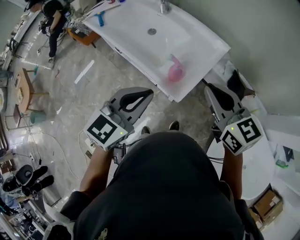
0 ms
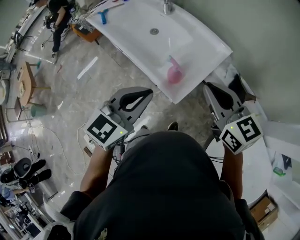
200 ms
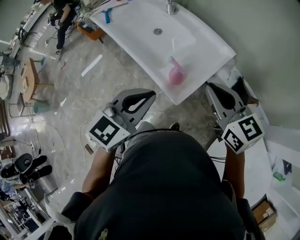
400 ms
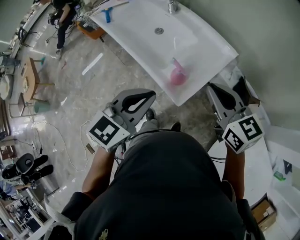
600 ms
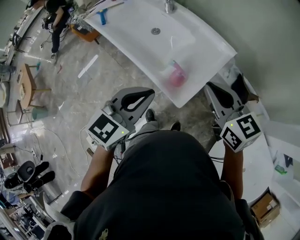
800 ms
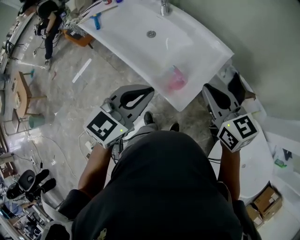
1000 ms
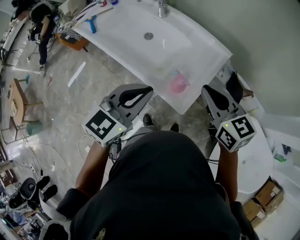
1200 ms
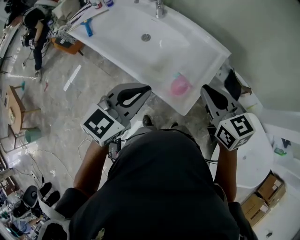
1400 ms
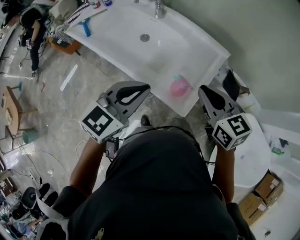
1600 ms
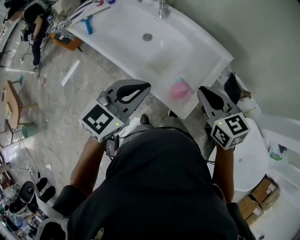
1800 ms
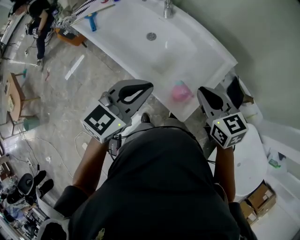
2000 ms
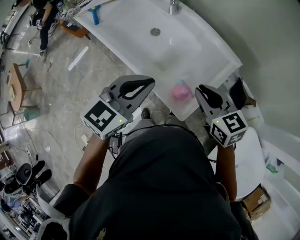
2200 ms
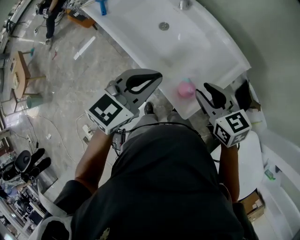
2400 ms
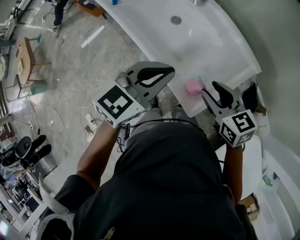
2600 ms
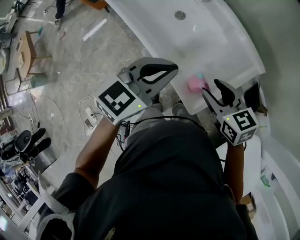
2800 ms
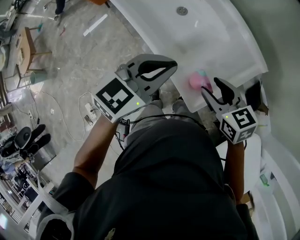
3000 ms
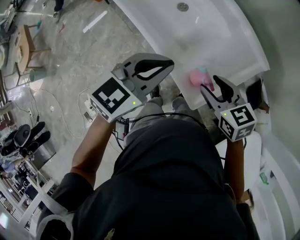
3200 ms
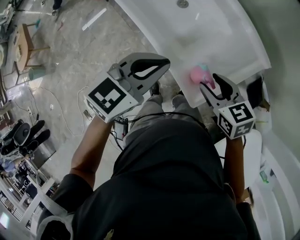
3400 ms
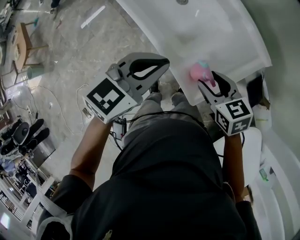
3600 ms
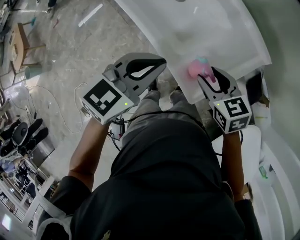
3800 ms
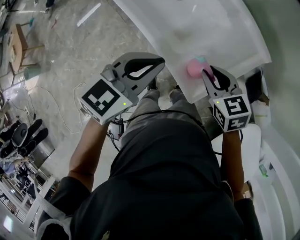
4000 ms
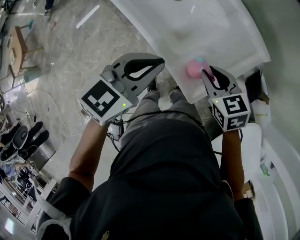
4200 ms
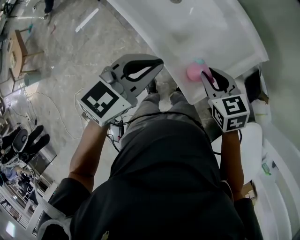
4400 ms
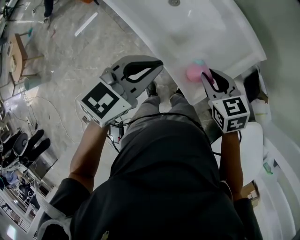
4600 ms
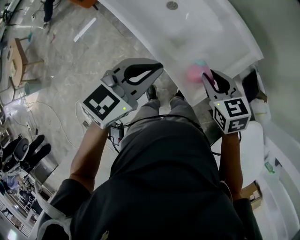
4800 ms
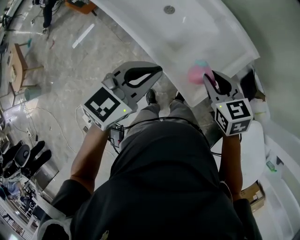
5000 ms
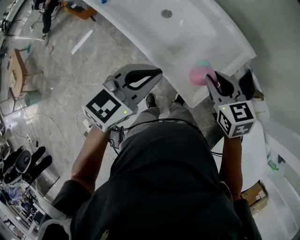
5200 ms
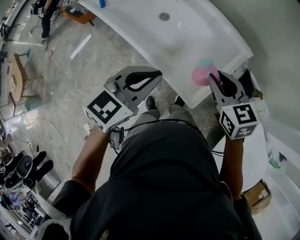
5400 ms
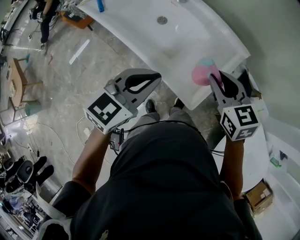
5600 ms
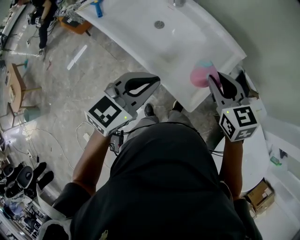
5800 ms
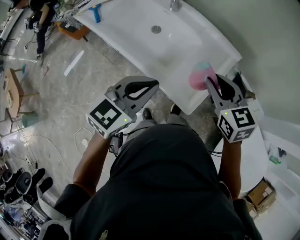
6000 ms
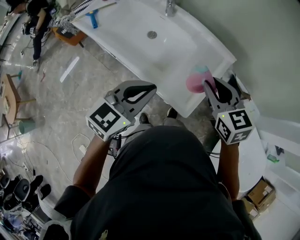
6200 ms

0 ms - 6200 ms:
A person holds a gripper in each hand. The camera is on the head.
0 ms - 1600 ms: The right gripper travels forward, to the left and downward by approximately 15 cm. Meanwhile the left gripper shifts roughly 15 cm forward and to the left.
1600 ms - 3200 ms: The right gripper heads downward, covering roughly 10 cm, rotates some 30 degrees, and opens up; the left gripper heads downward, covering about 5 cm.
3200 ms - 4600 ms: The right gripper closes up.
4600 ms - 6200 ms: The left gripper changes place by about 5 cm; the right gripper shifts roughly 15 cm upward, and swivels about 20 degrees.

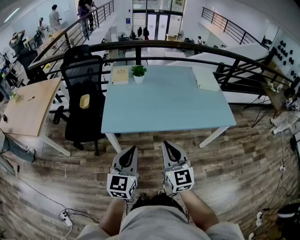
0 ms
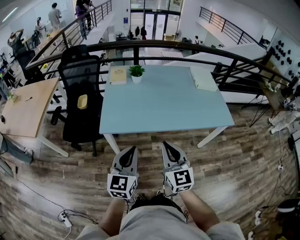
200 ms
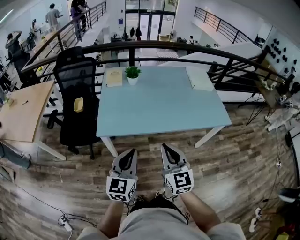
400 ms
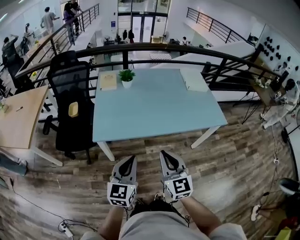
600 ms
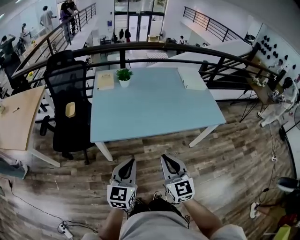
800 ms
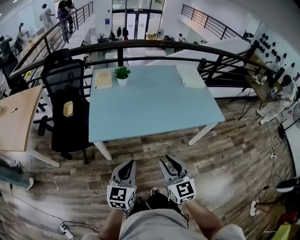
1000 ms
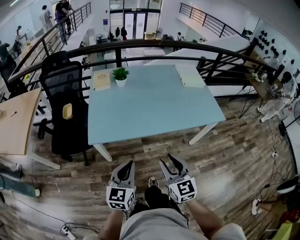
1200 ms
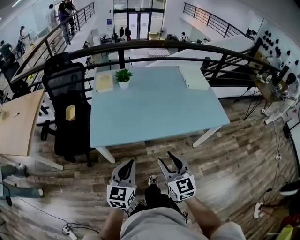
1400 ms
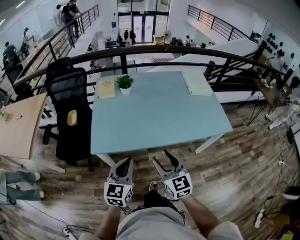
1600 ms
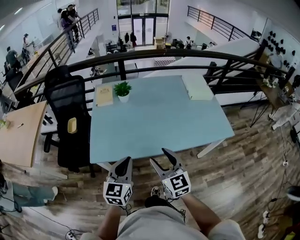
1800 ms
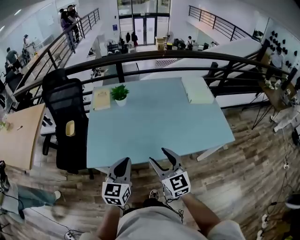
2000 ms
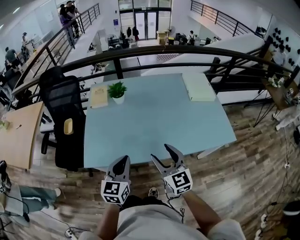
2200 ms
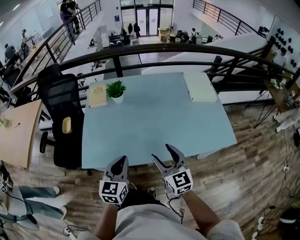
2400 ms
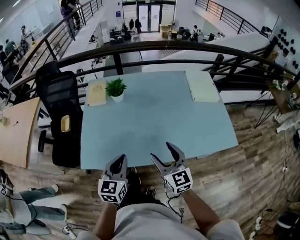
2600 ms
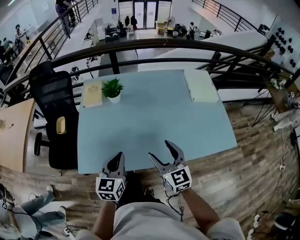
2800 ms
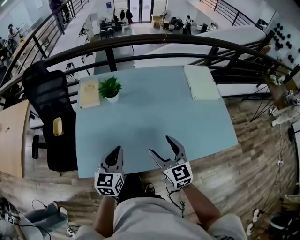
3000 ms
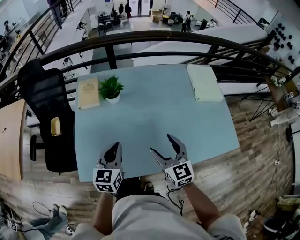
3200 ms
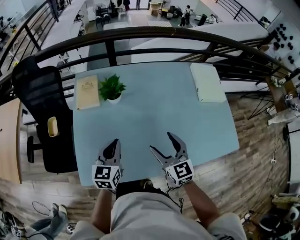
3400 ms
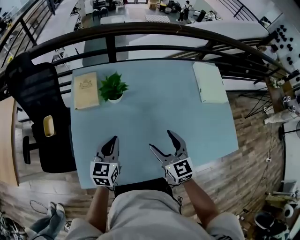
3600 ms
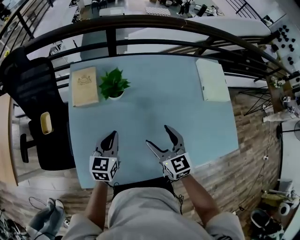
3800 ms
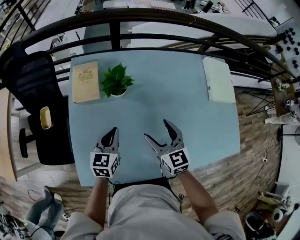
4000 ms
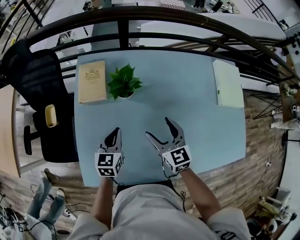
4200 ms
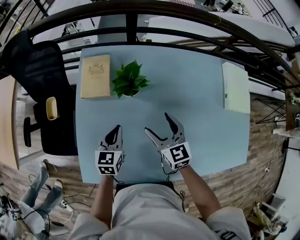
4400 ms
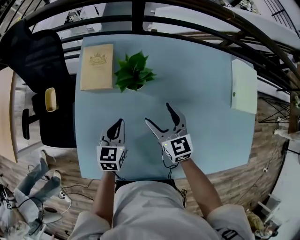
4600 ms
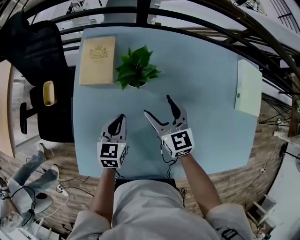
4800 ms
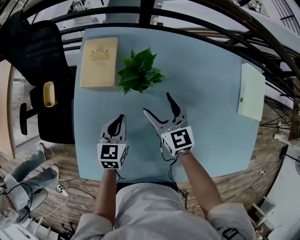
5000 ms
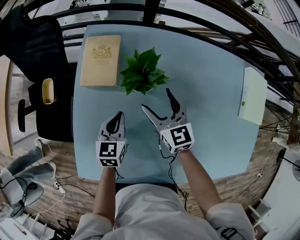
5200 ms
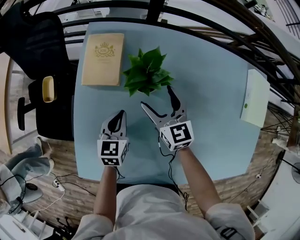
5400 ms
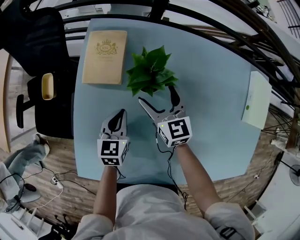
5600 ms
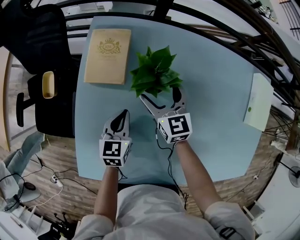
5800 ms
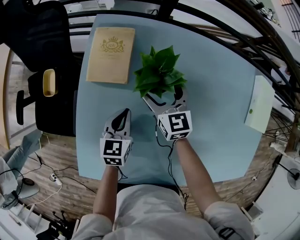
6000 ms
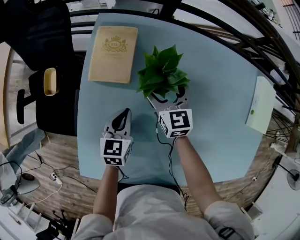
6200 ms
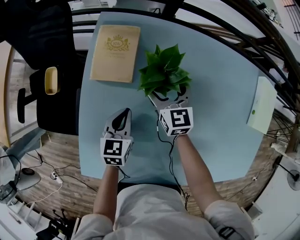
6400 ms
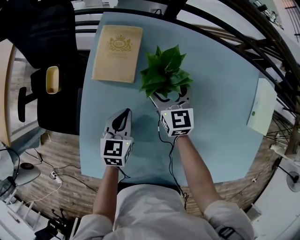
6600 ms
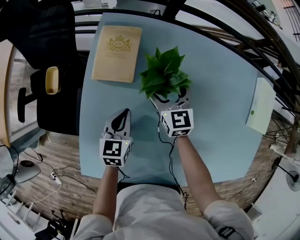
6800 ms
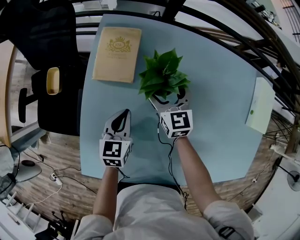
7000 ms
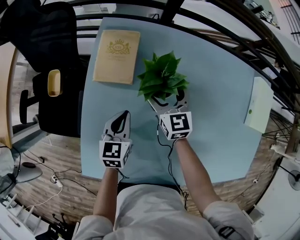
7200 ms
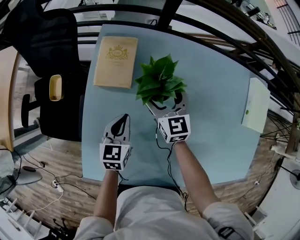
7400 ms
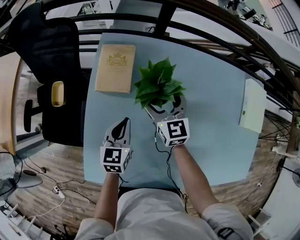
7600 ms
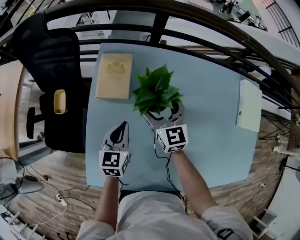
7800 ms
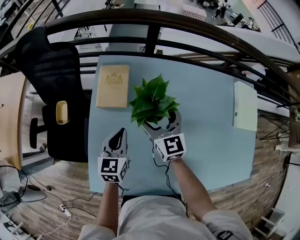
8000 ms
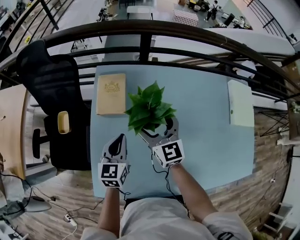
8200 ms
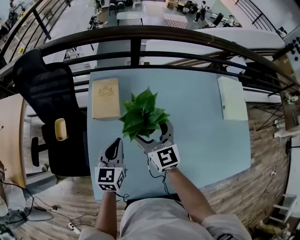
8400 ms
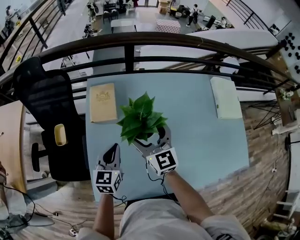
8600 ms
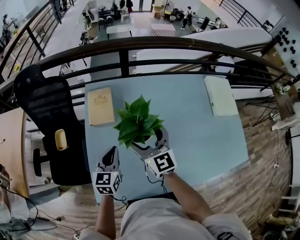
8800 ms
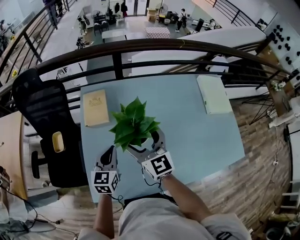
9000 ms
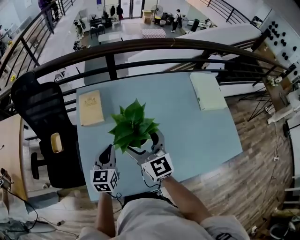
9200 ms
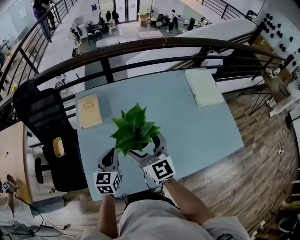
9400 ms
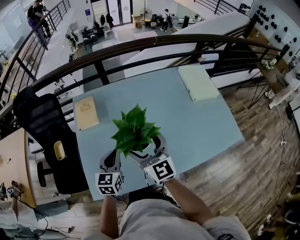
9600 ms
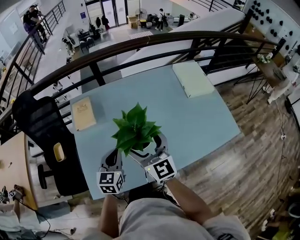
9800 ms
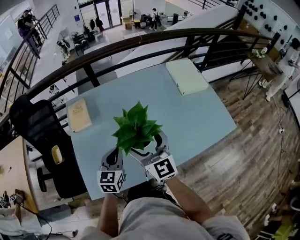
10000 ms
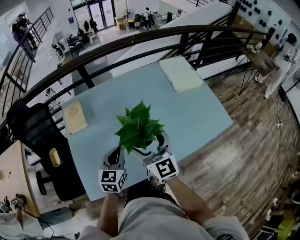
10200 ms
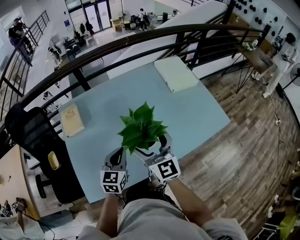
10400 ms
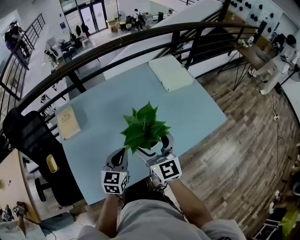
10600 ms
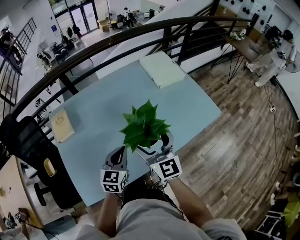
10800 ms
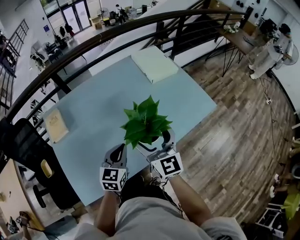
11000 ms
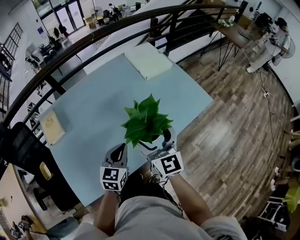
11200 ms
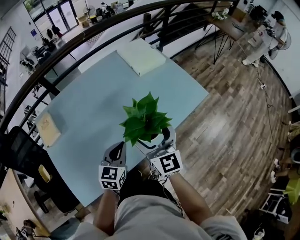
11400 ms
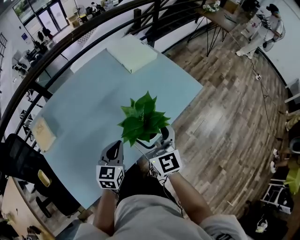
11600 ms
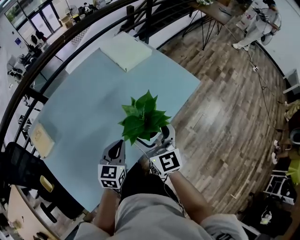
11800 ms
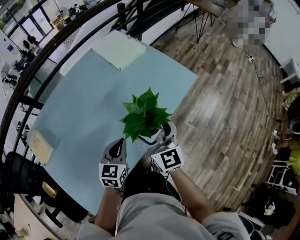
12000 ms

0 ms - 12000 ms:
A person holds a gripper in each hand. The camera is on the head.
0 ms - 1600 ms: The left gripper shifts some 10 cm forward. Meanwhile the right gripper moves forward and downward, some 10 cm, and opens its fingers.
1600 ms - 3000 ms: Both grippers move forward, approximately 25 cm.
3000 ms - 4400 ms: Both grippers travel together forward, downward and to the left, roughly 30 cm.
4400 ms - 6000 ms: The left gripper is displaced downward and forward by approximately 10 cm, while the right gripper is displaced forward, downward and to the left by roughly 20 cm.
6000 ms - 7600 ms: Both grippers travel together upward, roughly 5 cm.
7600 ms - 9000 ms: The left gripper is displaced upward and backward by some 15 cm, while the right gripper goes approximately 25 cm upward and backward.
9000 ms - 10400 ms: The grippers both shift to the right and backward by roughly 25 cm. The left gripper turns by some 20 degrees, while the right gripper changes its angle by roughly 20 degrees.
10400 ms - 12000 ms: The right gripper changes place by roughly 20 cm, and turns by about 30 degrees. The left gripper ends up roughly 20 cm from where it was, and turns by some 30 degrees.

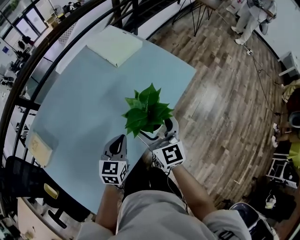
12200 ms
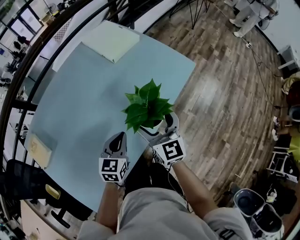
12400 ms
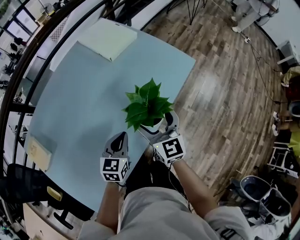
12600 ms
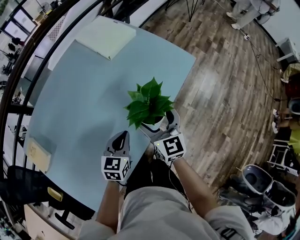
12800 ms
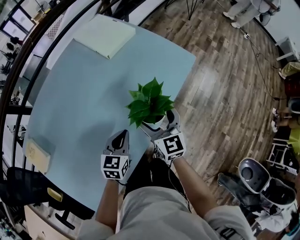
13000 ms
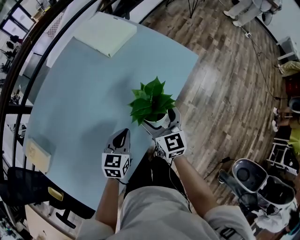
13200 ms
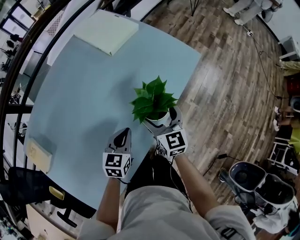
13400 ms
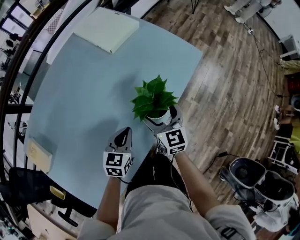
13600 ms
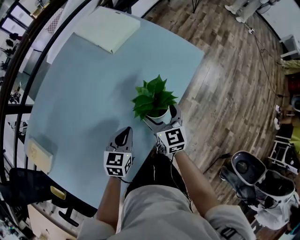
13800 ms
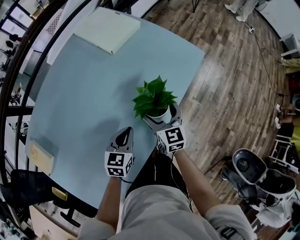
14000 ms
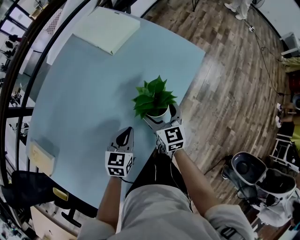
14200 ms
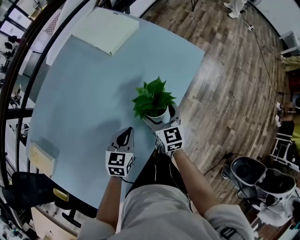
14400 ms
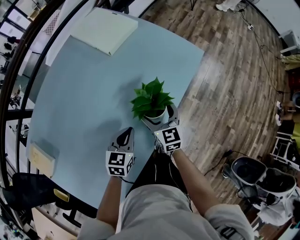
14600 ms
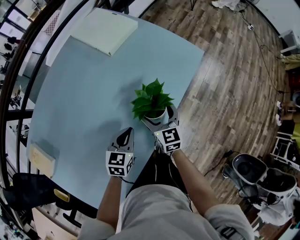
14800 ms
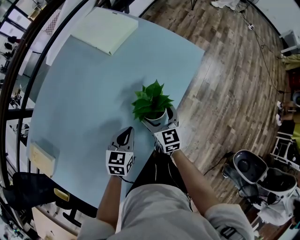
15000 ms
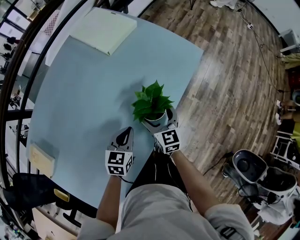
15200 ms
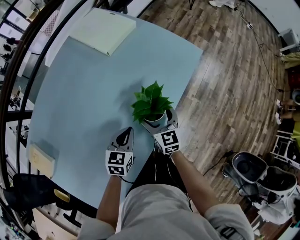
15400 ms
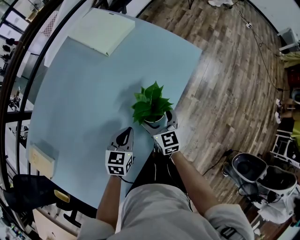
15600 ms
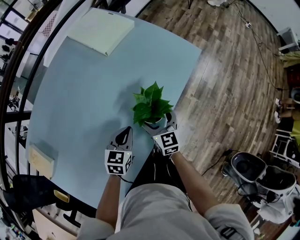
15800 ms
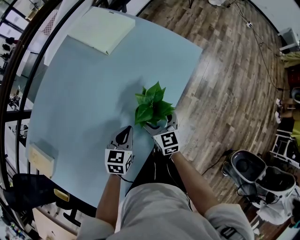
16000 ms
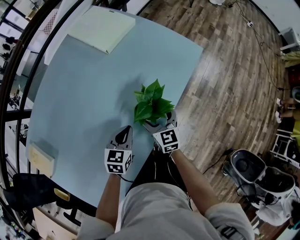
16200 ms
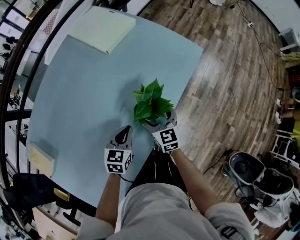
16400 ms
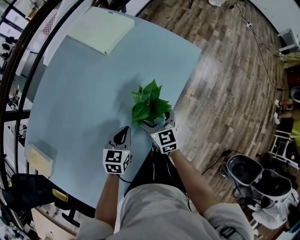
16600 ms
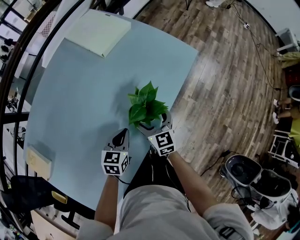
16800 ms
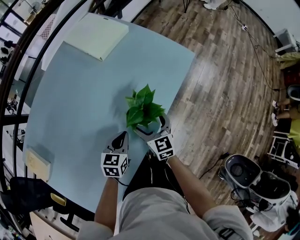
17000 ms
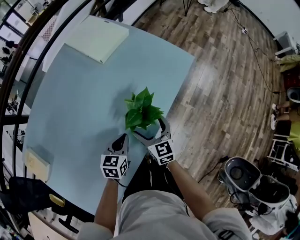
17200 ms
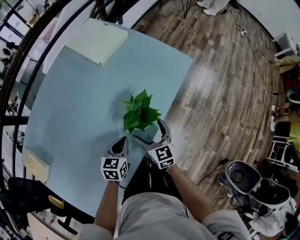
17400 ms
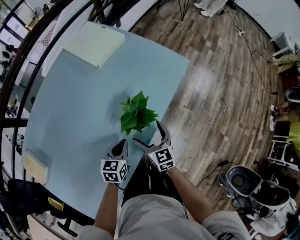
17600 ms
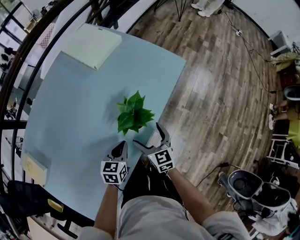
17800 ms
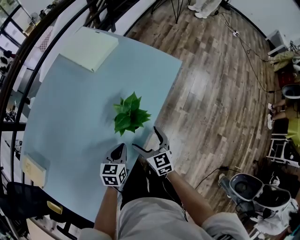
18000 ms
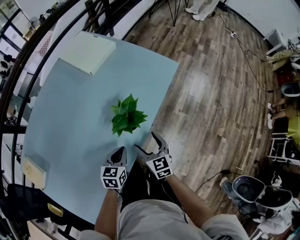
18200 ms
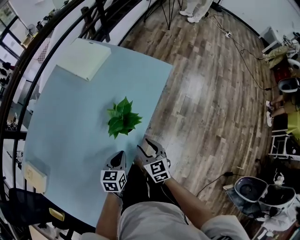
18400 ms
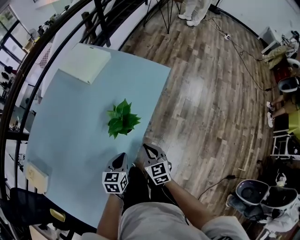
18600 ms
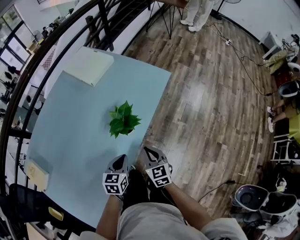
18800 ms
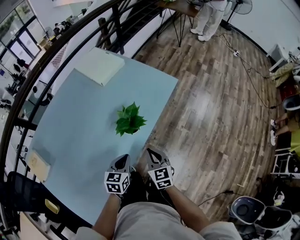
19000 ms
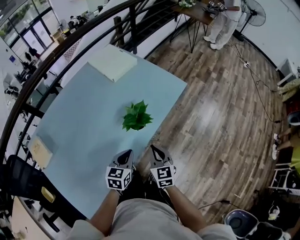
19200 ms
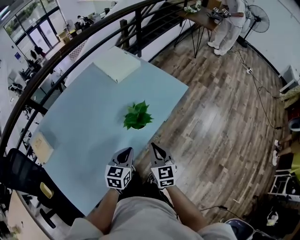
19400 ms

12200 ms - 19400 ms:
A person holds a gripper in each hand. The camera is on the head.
12200 ms - 13600 ms: The left gripper is displaced downward by about 10 cm; the right gripper moves downward and forward, about 15 cm.
13600 ms - 15000 ms: The right gripper is displaced downward by some 5 cm.
15000 ms - 16600 ms: The grippers move only a little.
16600 ms - 18000 ms: The right gripper shifts approximately 10 cm backward, while the left gripper ends up roughly 5 cm from where it was.
18000 ms - 19400 ms: The two grippers go some 15 cm upward and backward. The right gripper closes.
